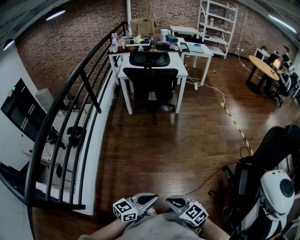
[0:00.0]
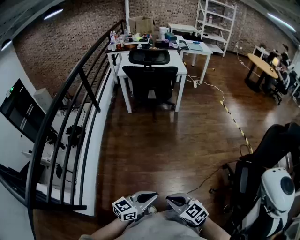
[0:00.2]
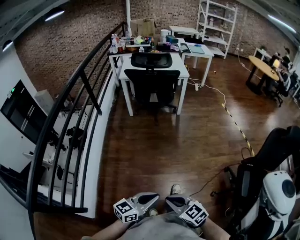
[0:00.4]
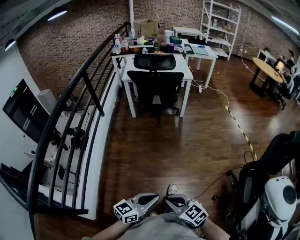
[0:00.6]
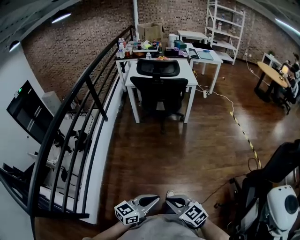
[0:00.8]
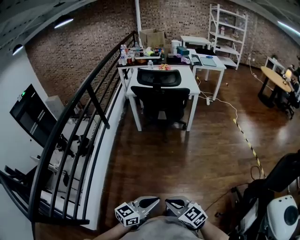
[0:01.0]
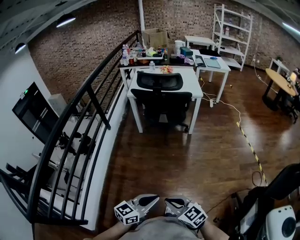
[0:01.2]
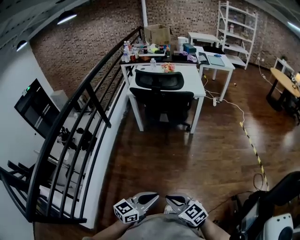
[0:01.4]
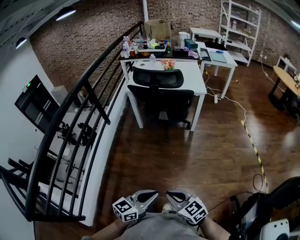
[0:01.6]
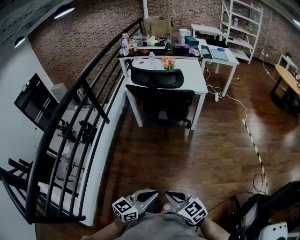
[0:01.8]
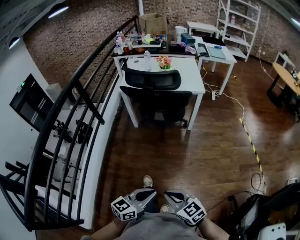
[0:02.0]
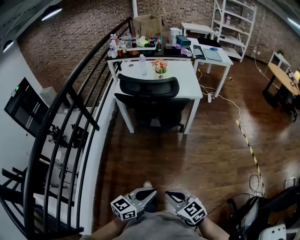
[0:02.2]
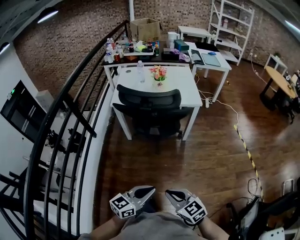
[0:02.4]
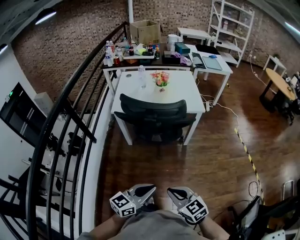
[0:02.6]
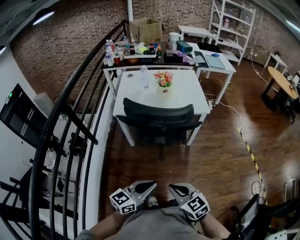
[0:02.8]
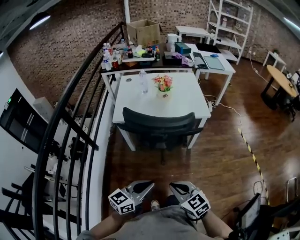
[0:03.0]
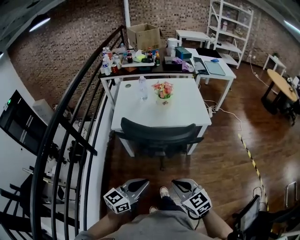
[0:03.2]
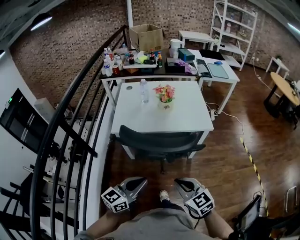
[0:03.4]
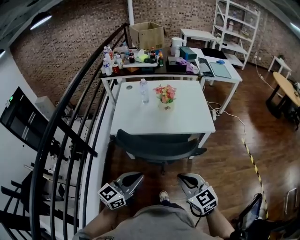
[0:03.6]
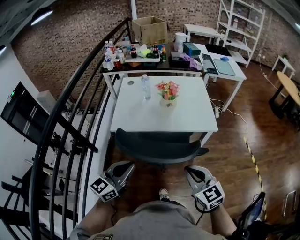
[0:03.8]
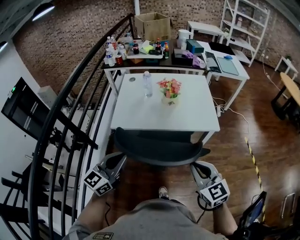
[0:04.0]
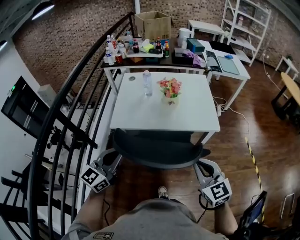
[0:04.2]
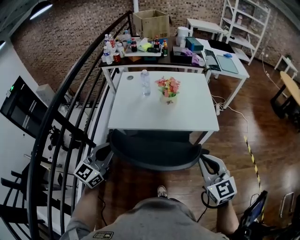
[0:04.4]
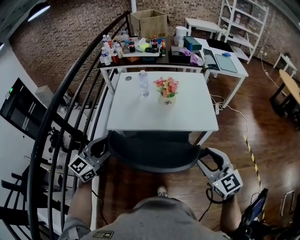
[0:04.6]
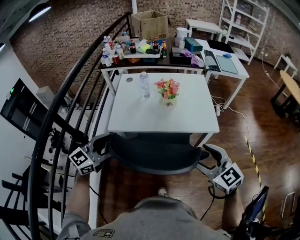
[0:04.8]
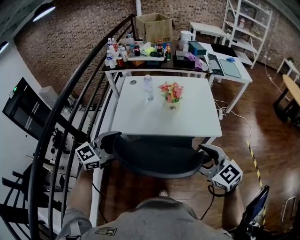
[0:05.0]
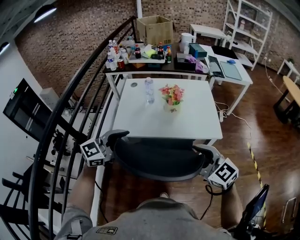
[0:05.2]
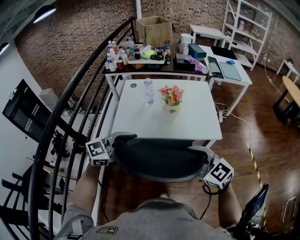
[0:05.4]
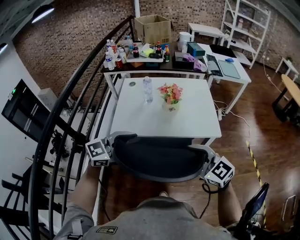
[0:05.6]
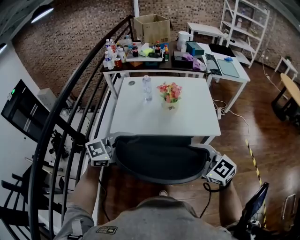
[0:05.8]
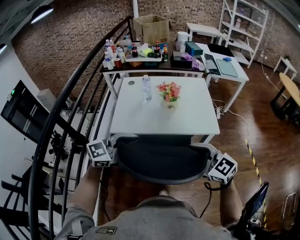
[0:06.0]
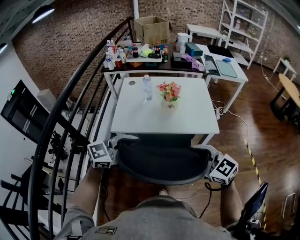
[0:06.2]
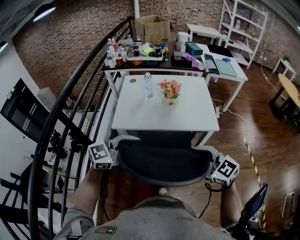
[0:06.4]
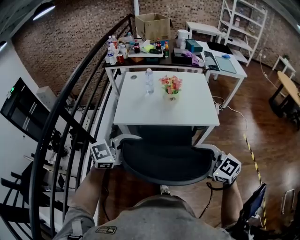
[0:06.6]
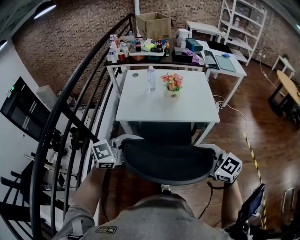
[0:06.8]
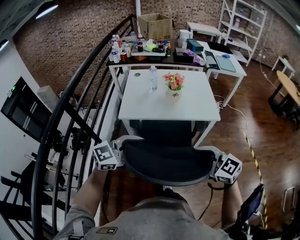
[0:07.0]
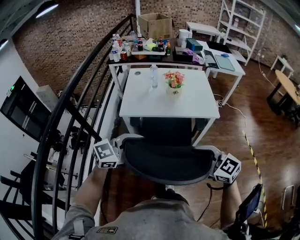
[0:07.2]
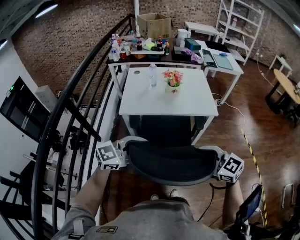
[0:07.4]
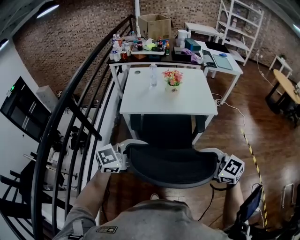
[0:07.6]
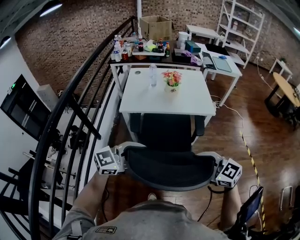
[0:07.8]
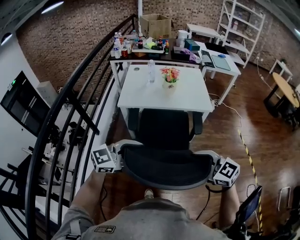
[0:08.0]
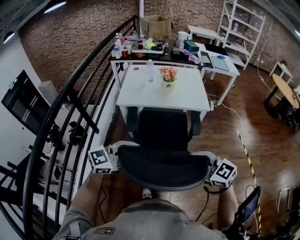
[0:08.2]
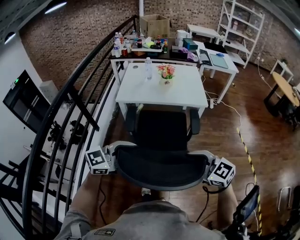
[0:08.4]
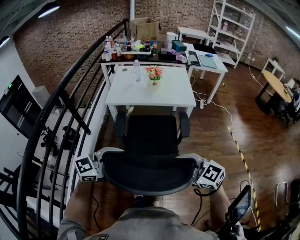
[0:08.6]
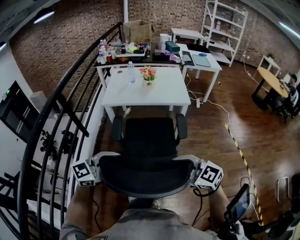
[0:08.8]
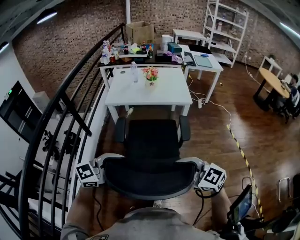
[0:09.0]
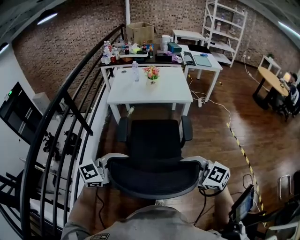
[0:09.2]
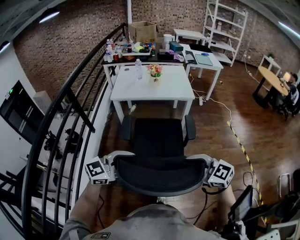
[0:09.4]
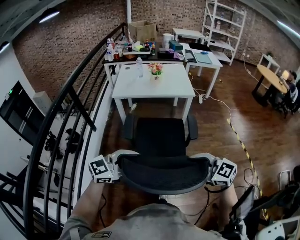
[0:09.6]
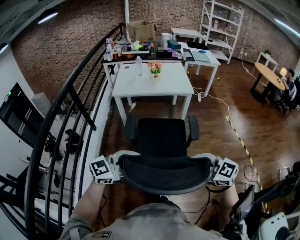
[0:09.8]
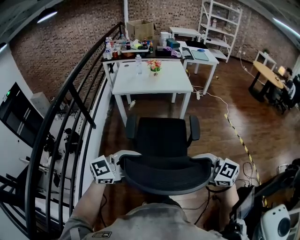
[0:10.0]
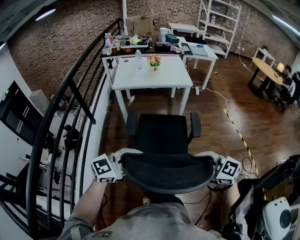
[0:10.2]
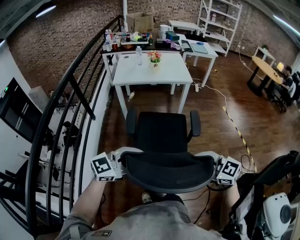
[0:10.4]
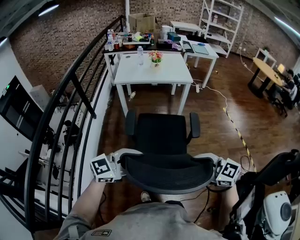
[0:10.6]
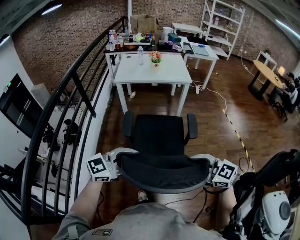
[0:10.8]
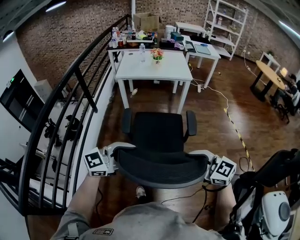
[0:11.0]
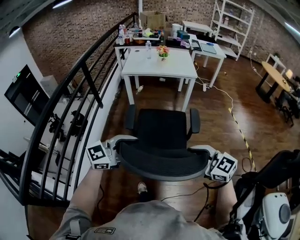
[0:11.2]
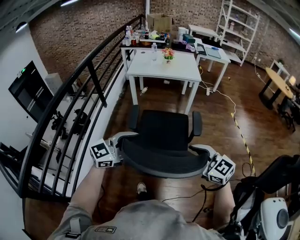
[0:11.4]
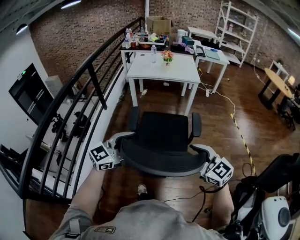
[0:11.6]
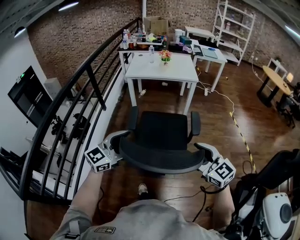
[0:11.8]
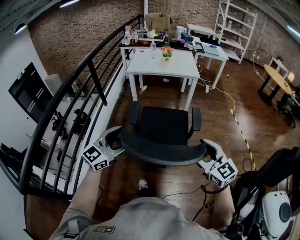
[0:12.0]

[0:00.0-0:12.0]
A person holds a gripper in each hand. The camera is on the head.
0:00.0 to 0:01.6: Both grippers move forward, about 30 cm.
0:01.6 to 0:03.0: Both grippers move forward, approximately 35 cm.
0:03.0 to 0:04.4: The left gripper travels forward and to the left by approximately 30 cm, and turns by roughly 30 degrees, while the right gripper travels forward, to the right and upward by roughly 30 cm, and rotates about 20 degrees.
0:04.4 to 0:06.0: The right gripper heads to the left, covering some 5 cm, turns by approximately 30 degrees, and opens its fingers; the left gripper shifts roughly 10 cm to the right, swivels about 40 degrees, and opens.
0:06.0 to 0:07.6: The left gripper moves approximately 20 cm; the right gripper shifts by roughly 20 cm.
0:07.6 to 0:09.0: The right gripper moves roughly 20 cm. The left gripper shifts by approximately 20 cm.
0:09.0 to 0:10.4: The left gripper shifts by some 15 cm; the right gripper ends up approximately 20 cm from where it was.
0:10.4 to 0:12.0: The right gripper changes place by about 10 cm, turns by about 20 degrees, and opens. The left gripper ends up some 10 cm from where it was, rotates approximately 30 degrees, and opens up.

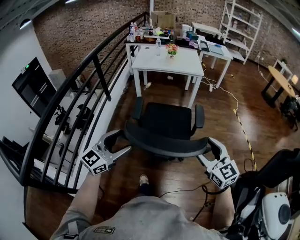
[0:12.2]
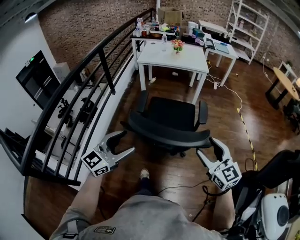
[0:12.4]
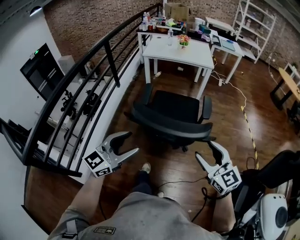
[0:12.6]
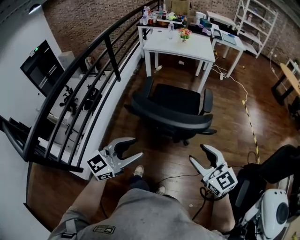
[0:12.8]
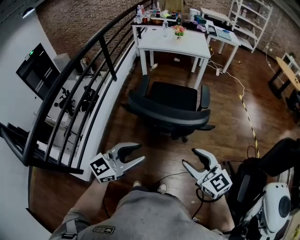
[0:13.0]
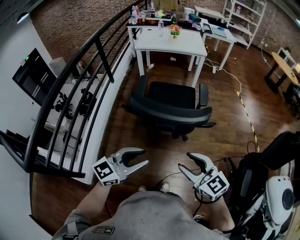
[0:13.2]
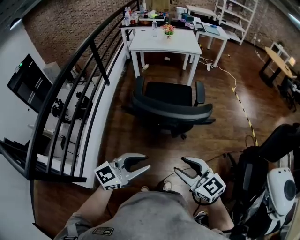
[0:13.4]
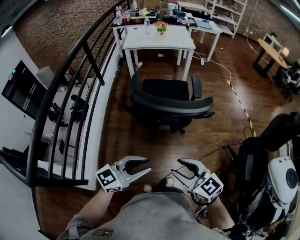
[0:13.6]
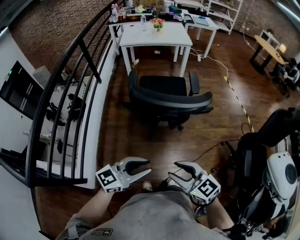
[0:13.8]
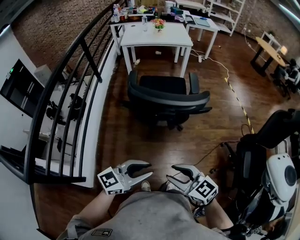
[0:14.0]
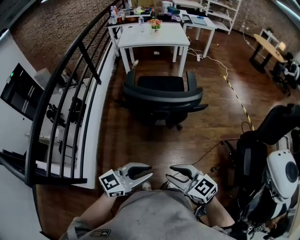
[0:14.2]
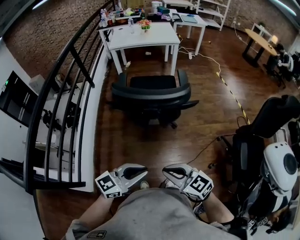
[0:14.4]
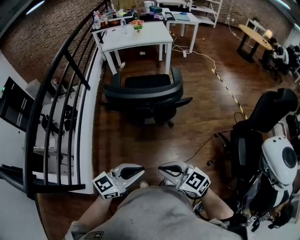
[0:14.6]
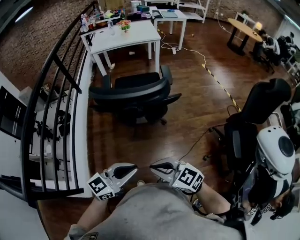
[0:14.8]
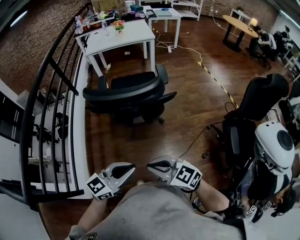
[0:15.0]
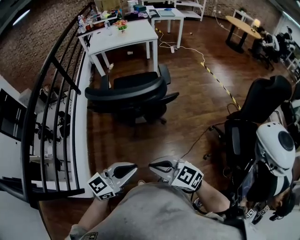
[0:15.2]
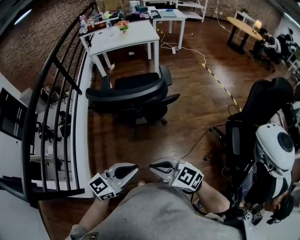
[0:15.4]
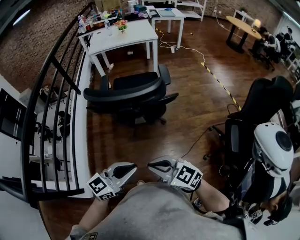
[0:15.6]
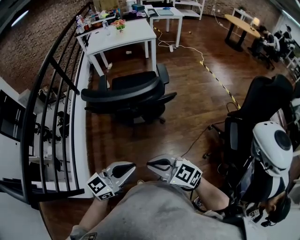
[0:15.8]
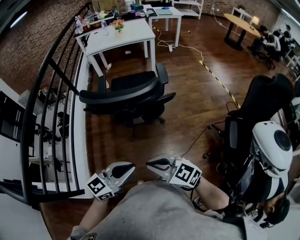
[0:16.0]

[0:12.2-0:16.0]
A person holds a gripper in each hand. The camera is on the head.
0:12.2 to 0:13.4: The left gripper is displaced backward and to the right by roughly 20 cm, swivels some 20 degrees, and closes its fingers; the right gripper is displaced backward and to the left by roughly 25 cm.
0:13.4 to 0:14.8: The right gripper moves roughly 10 cm, and closes up. Meanwhile the left gripper moves about 10 cm.
0:14.8 to 0:16.0: The grippers stay close to where they were, moving slightly.

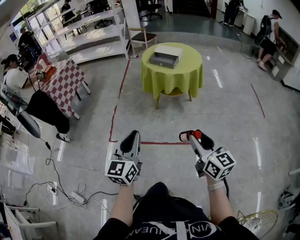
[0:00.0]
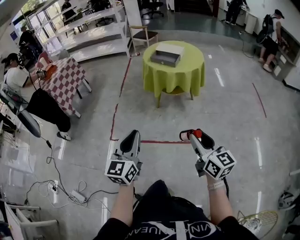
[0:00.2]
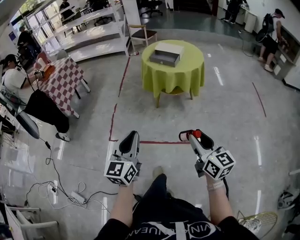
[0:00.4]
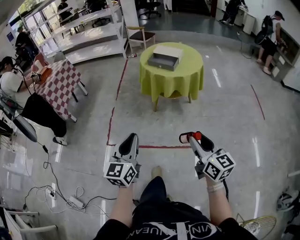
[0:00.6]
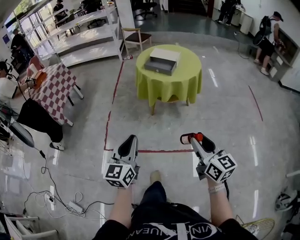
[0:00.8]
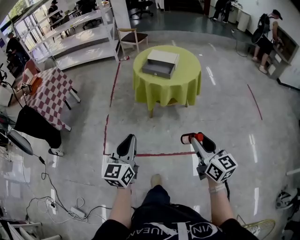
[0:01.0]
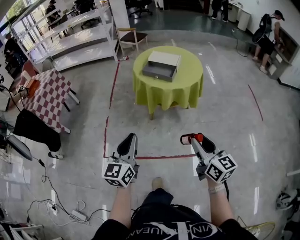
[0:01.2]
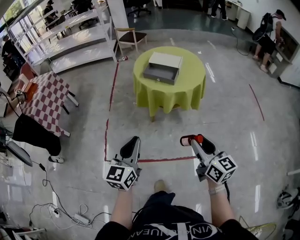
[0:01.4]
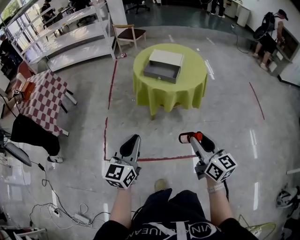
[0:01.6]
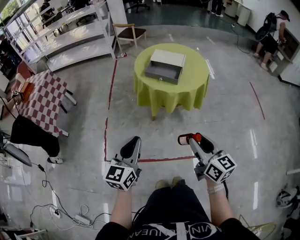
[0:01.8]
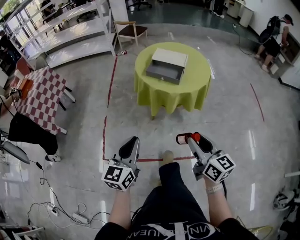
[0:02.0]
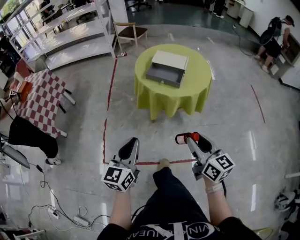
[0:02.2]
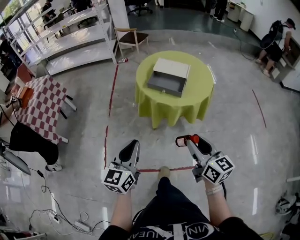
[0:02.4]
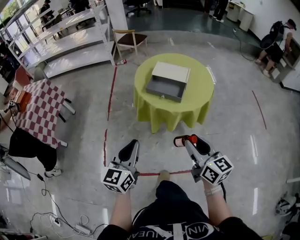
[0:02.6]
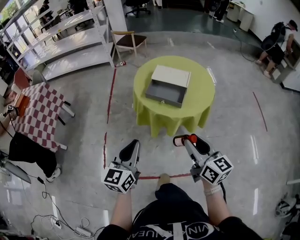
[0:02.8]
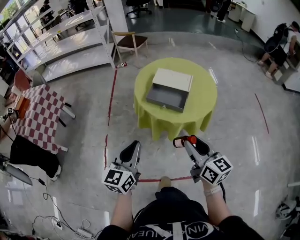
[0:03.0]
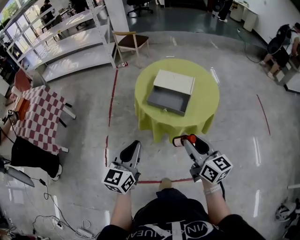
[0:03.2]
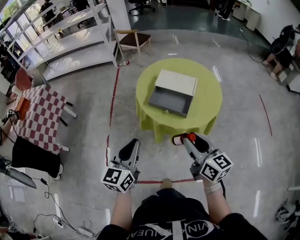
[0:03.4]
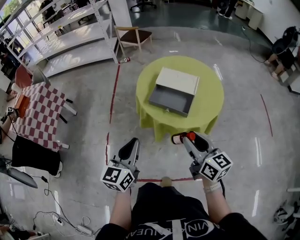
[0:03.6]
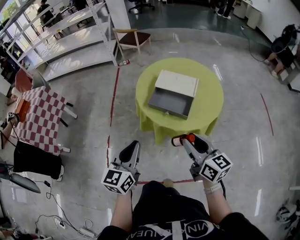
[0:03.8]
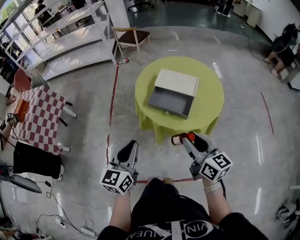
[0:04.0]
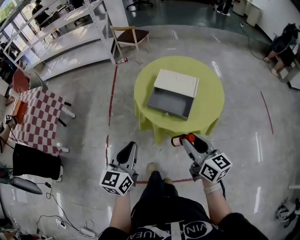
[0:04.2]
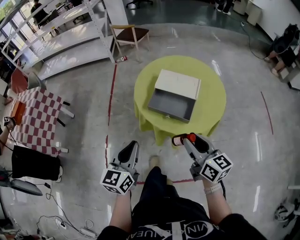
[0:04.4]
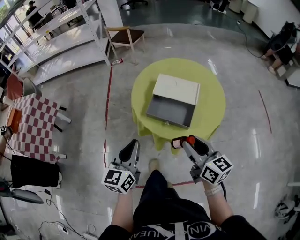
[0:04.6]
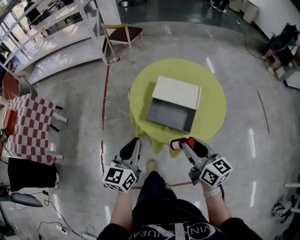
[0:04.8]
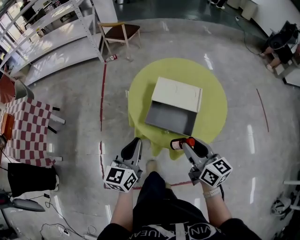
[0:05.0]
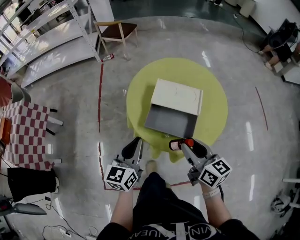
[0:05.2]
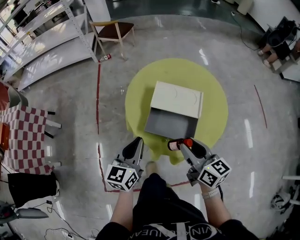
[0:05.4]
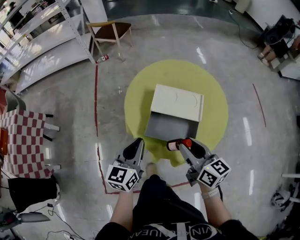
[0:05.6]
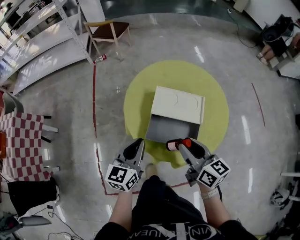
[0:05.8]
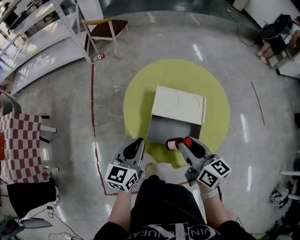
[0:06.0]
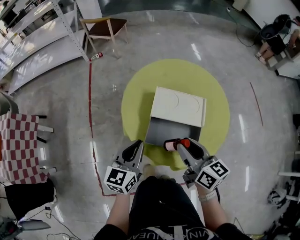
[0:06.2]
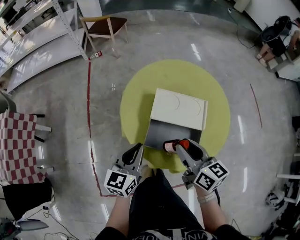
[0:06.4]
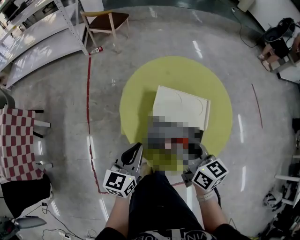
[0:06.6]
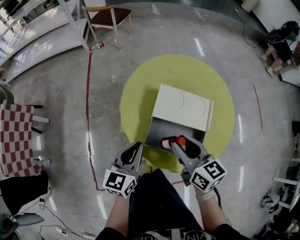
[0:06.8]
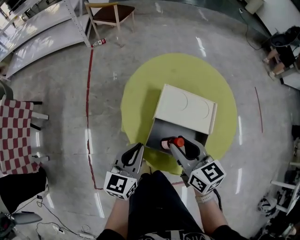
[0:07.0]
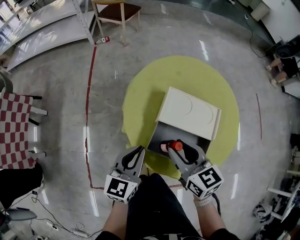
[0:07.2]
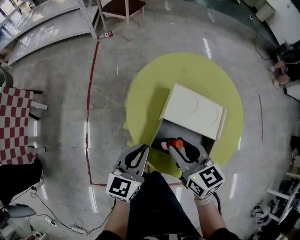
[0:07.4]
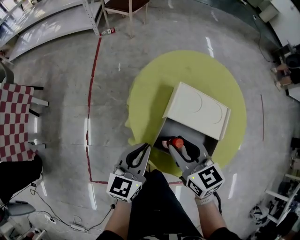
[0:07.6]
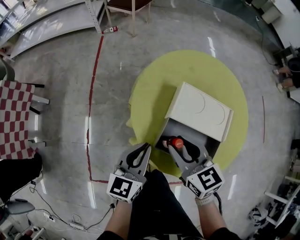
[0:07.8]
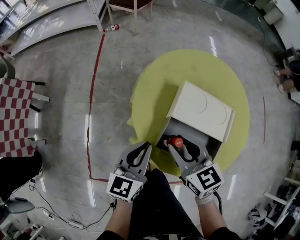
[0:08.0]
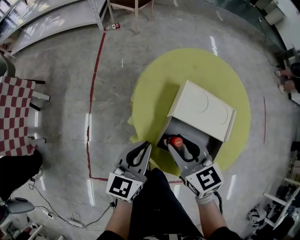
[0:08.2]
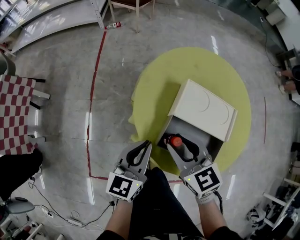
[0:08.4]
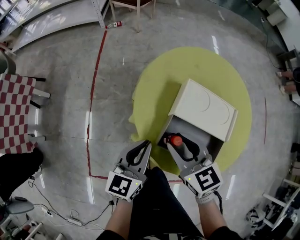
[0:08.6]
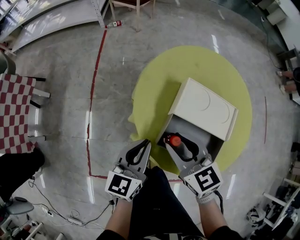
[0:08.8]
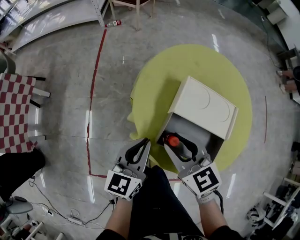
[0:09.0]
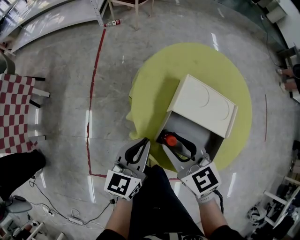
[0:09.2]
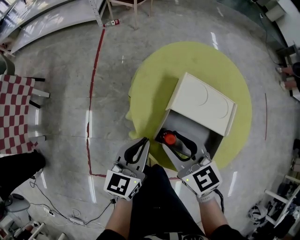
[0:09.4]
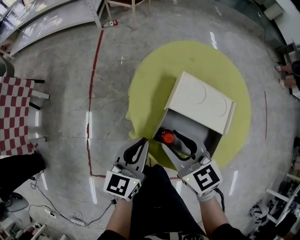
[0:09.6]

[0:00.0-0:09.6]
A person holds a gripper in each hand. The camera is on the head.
0:00.0 to 0:01.6: Both grippers travel together forward, some 25 cm.
0:01.6 to 0:03.2: The two grippers go approximately 25 cm forward.
0:03.2 to 0:04.8: Both grippers travel together forward, some 15 cm.
0:04.8 to 0:06.4: The left gripper goes some 15 cm forward and downward. Meanwhile the right gripper goes approximately 15 cm forward.
0:06.4 to 0:08.0: The right gripper is displaced to the left and downward by some 10 cm, and swivels some 30 degrees.
0:08.0 to 0:09.6: The grippers move only a little.
